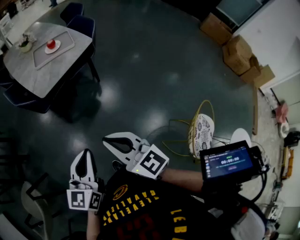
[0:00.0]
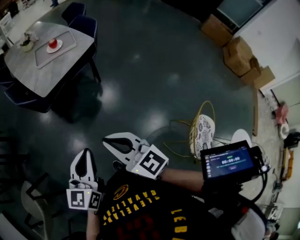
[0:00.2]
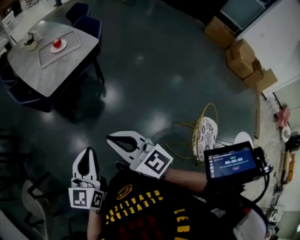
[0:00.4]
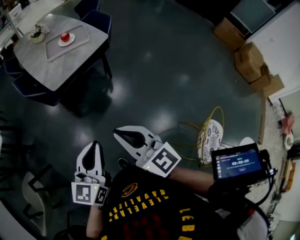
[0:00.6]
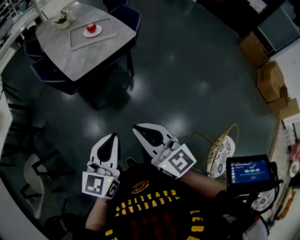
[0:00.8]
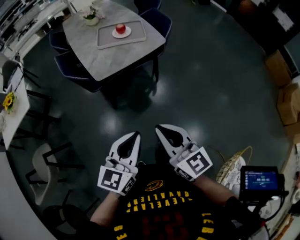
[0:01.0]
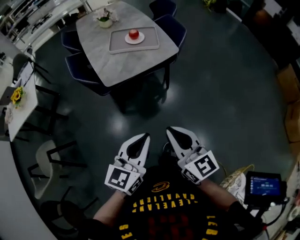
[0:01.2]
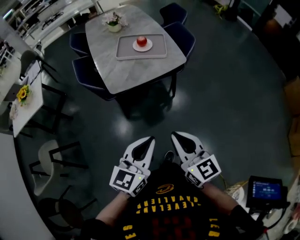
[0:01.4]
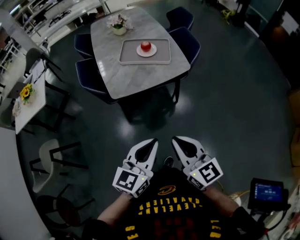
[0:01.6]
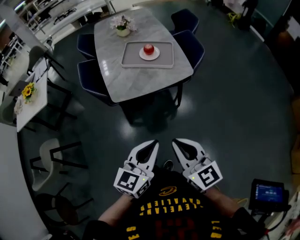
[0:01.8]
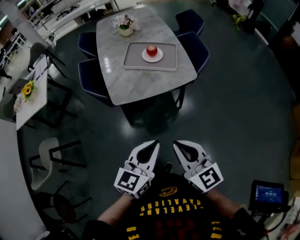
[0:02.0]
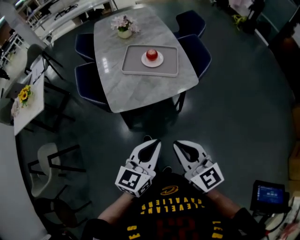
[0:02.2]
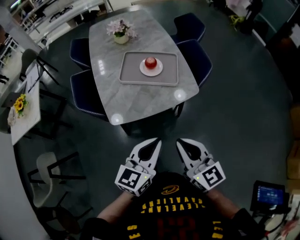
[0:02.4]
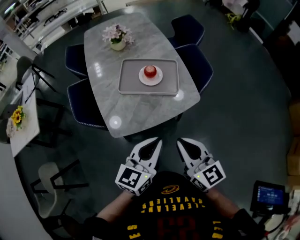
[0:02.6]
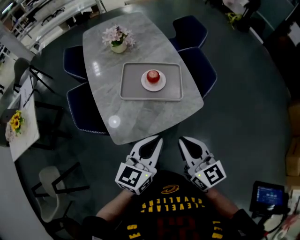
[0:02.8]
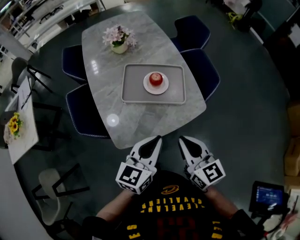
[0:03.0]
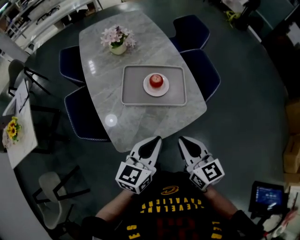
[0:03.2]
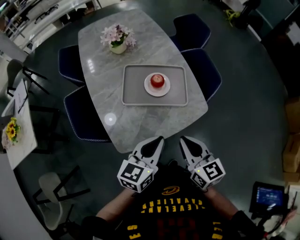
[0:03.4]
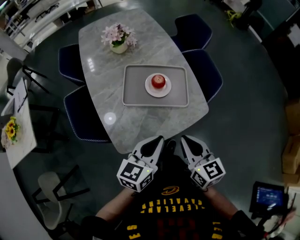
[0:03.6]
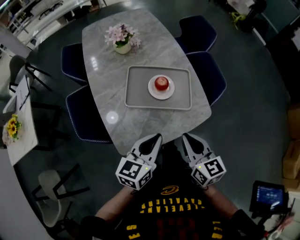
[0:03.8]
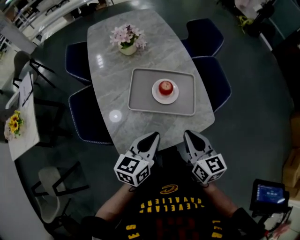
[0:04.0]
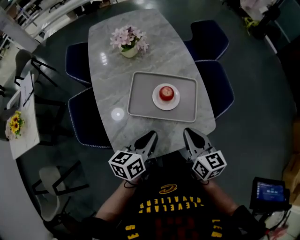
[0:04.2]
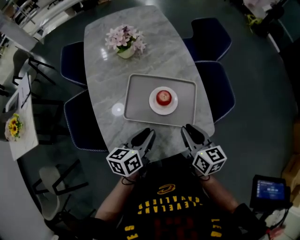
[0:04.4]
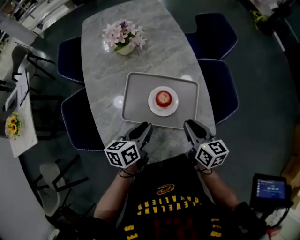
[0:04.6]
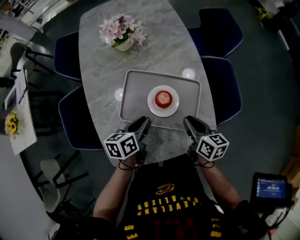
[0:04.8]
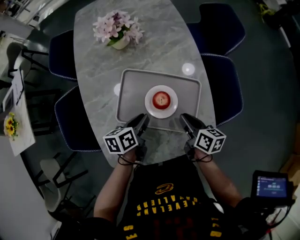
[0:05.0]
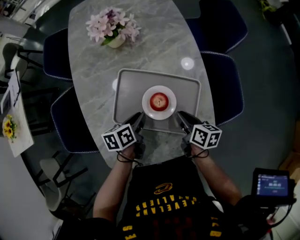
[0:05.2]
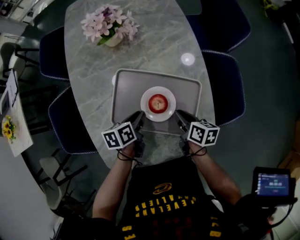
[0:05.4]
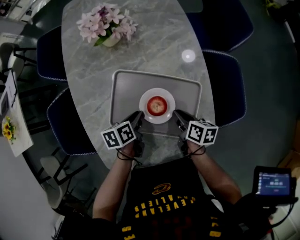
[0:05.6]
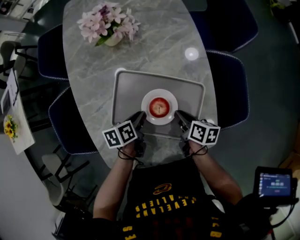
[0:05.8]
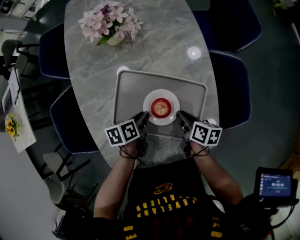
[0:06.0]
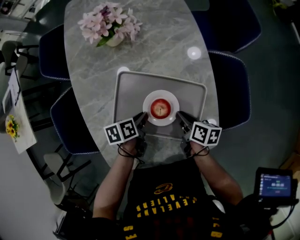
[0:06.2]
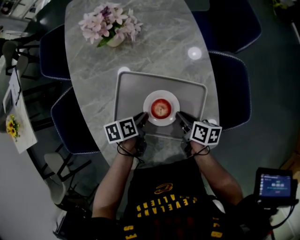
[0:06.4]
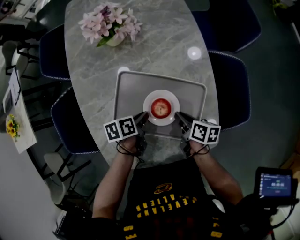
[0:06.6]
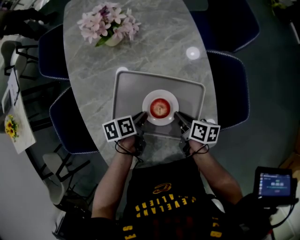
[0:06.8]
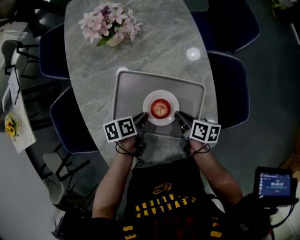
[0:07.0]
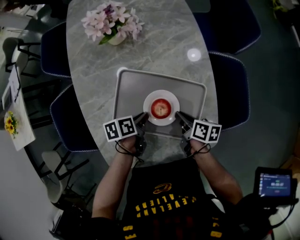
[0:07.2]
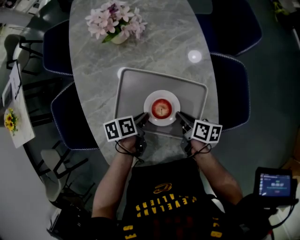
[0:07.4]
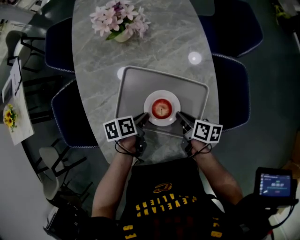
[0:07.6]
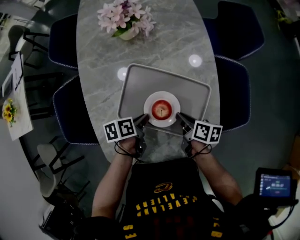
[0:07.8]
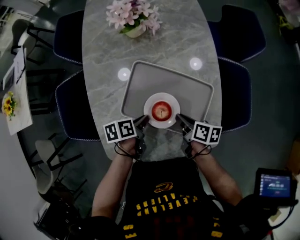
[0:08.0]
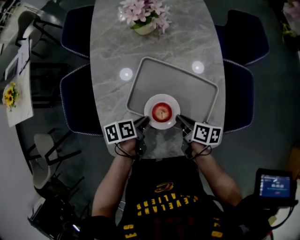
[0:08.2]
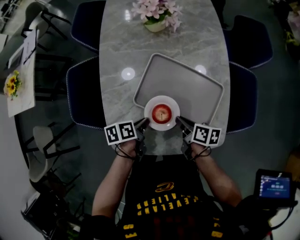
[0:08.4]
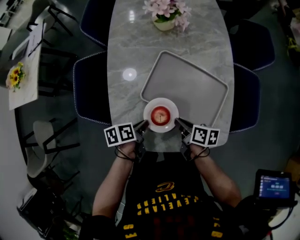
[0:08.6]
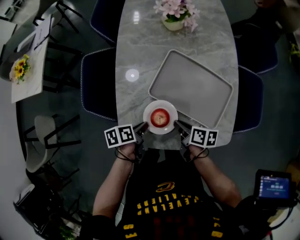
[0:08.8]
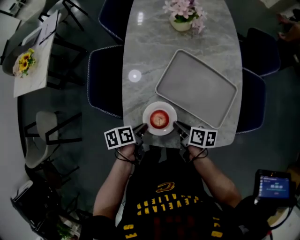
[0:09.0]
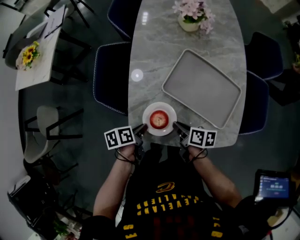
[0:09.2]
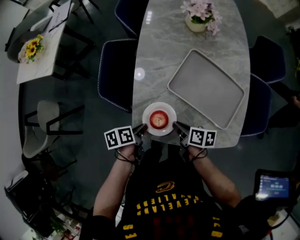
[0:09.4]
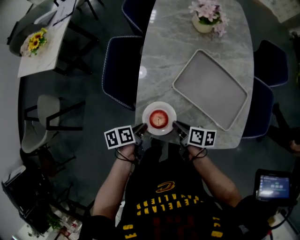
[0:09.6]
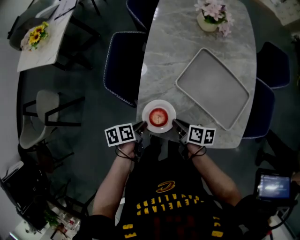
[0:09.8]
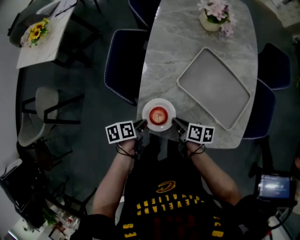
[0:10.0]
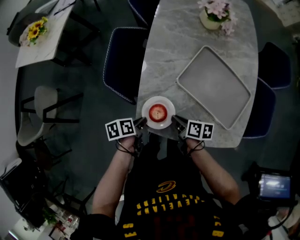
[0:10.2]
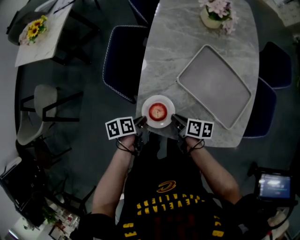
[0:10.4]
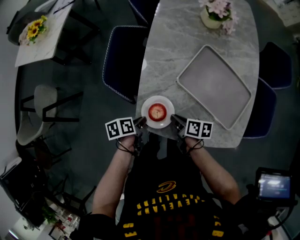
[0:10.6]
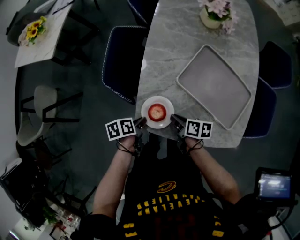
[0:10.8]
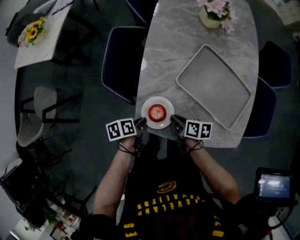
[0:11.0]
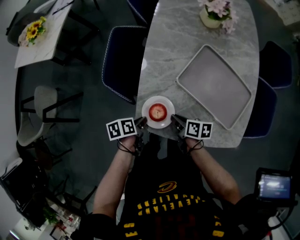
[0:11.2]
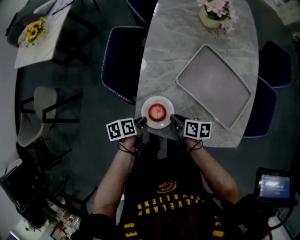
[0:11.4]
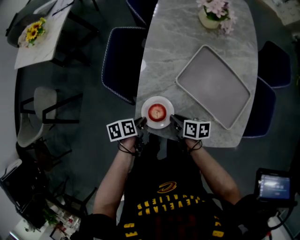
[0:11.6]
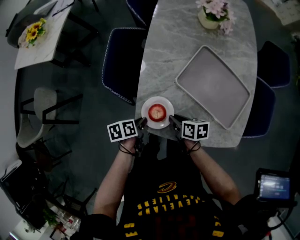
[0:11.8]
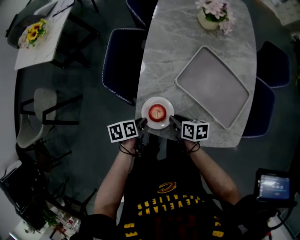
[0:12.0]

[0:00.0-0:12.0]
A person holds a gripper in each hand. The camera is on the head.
0:00.0 to 0:01.6: Both grippers move backward, roughly 5 cm.
0:01.6 to 0:03.0: Both grippers travel together forward, about 35 cm.
0:03.0 to 0:04.4: The grippers both shift forward and downward by approximately 20 cm. The left gripper swivels some 30 degrees.
0:04.4 to 0:06.0: Both grippers travel together downward and forward, about 20 cm. The left gripper turns by some 30 degrees. Meanwhile the right gripper turns by approximately 40 degrees.
0:06.0 to 0:07.6: The grippers make only small movements.
0:07.6 to 0:09.0: The left gripper heads backward and to the left, covering about 25 cm, while the right gripper travels to the left and backward by about 20 cm.
0:09.0 to 0:10.4: Both grippers travel together to the left, roughly 10 cm.
0:10.4 to 0:12.0: The grippers move only a little.

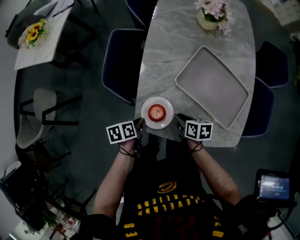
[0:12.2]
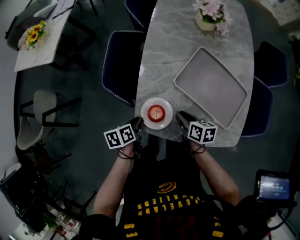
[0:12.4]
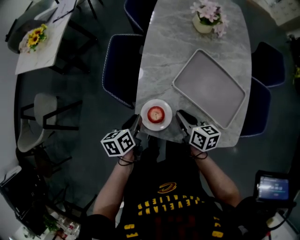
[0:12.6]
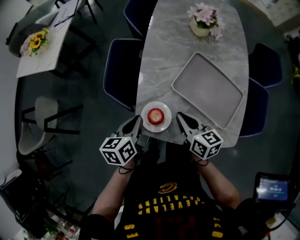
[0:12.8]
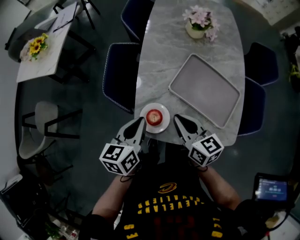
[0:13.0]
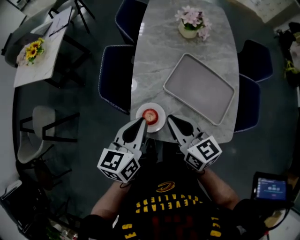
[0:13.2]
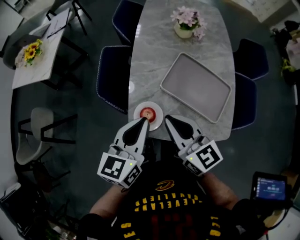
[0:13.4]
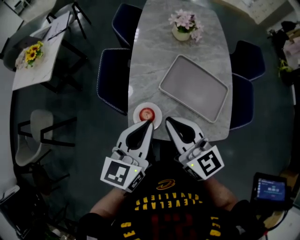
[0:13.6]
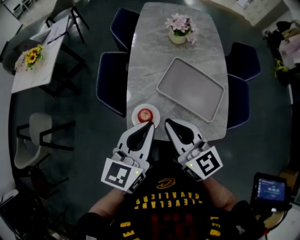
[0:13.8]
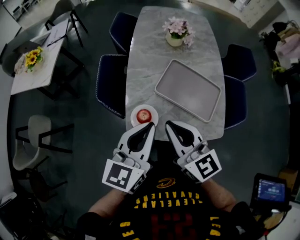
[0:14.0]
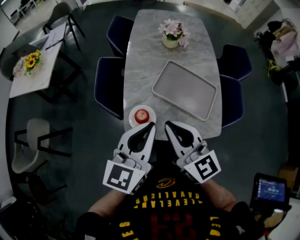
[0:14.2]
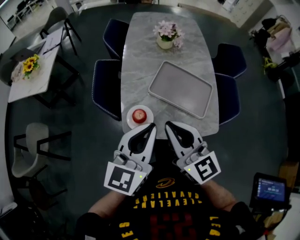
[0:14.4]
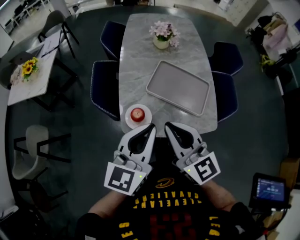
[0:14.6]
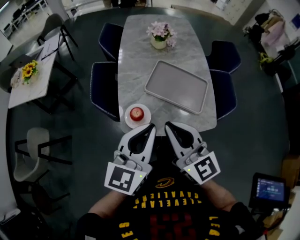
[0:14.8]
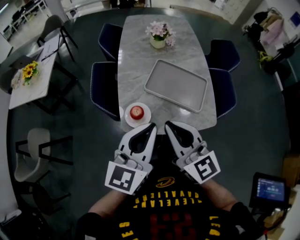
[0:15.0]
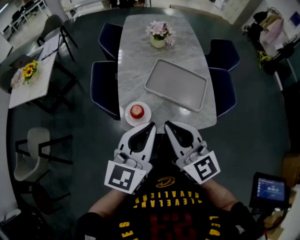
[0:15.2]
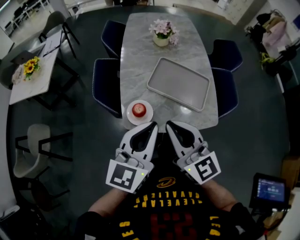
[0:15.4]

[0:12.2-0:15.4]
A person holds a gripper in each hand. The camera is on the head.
0:12.2 to 0:13.8: The two grippers go approximately 35 cm upward. The right gripper points its fingers roughly 40 degrees further upward, while the left gripper tips its fingers upward by approximately 40 degrees.
0:13.8 to 0:15.4: The grippers both shift backward by roughly 5 cm.

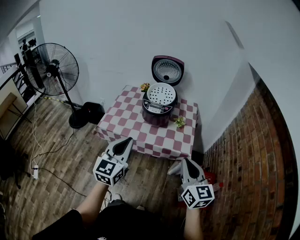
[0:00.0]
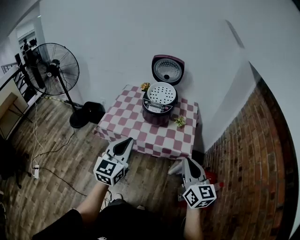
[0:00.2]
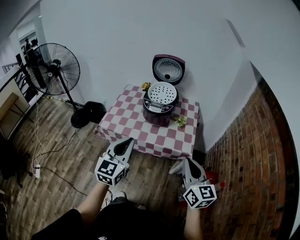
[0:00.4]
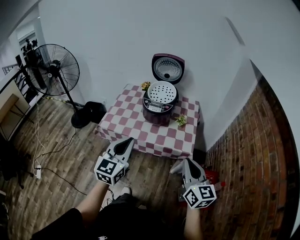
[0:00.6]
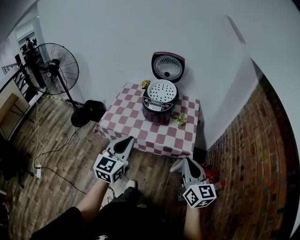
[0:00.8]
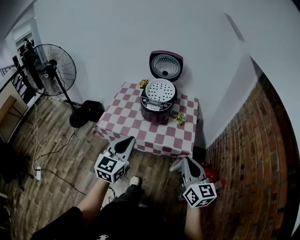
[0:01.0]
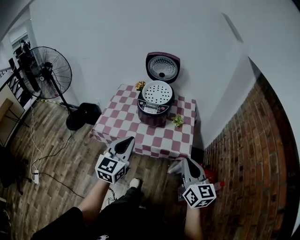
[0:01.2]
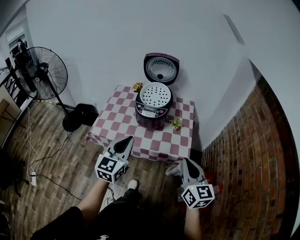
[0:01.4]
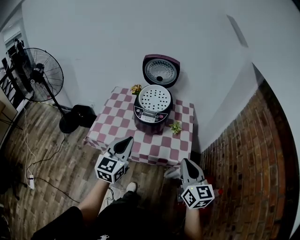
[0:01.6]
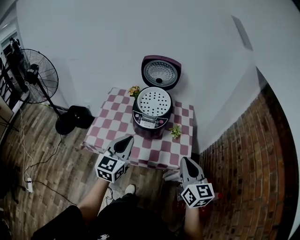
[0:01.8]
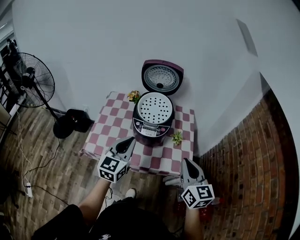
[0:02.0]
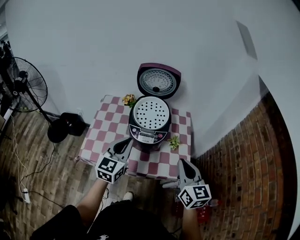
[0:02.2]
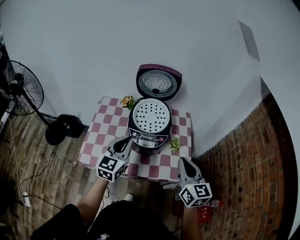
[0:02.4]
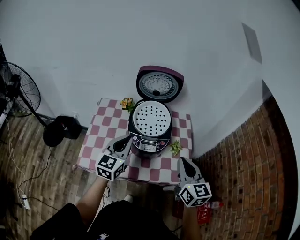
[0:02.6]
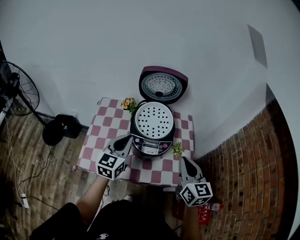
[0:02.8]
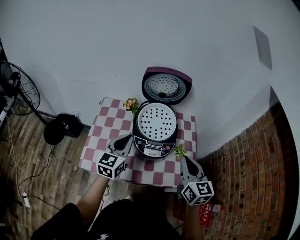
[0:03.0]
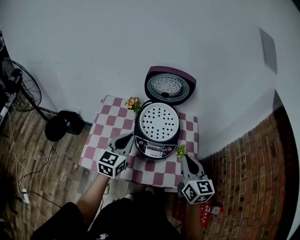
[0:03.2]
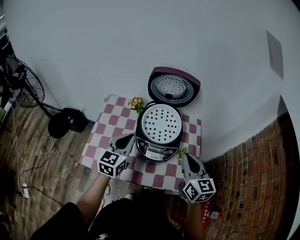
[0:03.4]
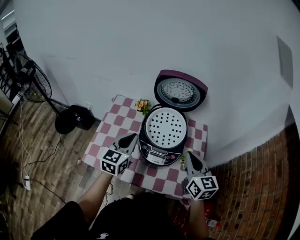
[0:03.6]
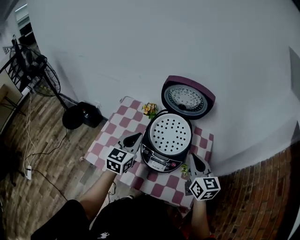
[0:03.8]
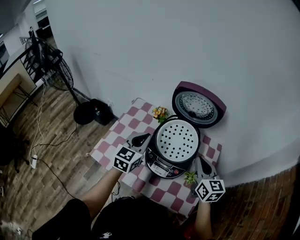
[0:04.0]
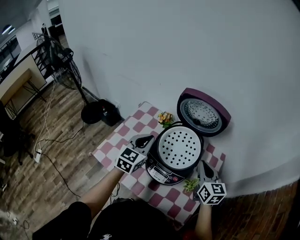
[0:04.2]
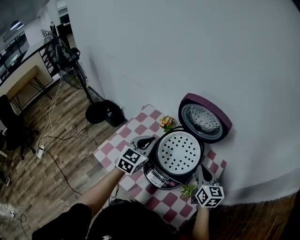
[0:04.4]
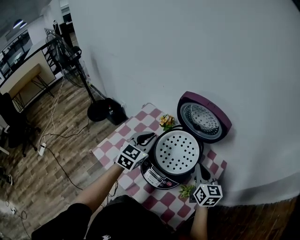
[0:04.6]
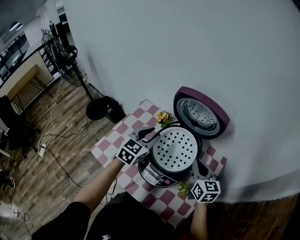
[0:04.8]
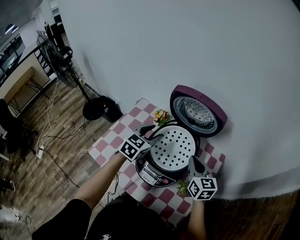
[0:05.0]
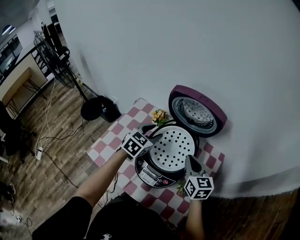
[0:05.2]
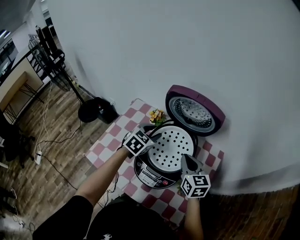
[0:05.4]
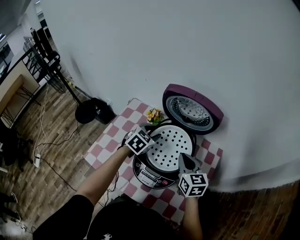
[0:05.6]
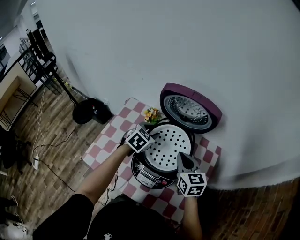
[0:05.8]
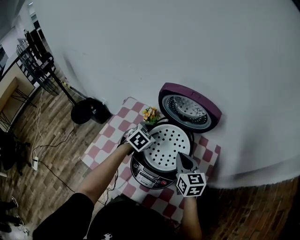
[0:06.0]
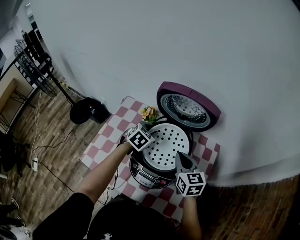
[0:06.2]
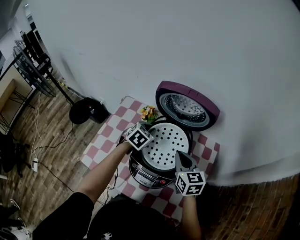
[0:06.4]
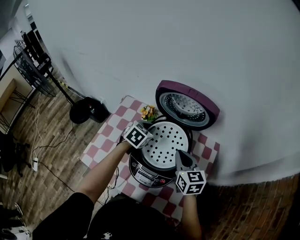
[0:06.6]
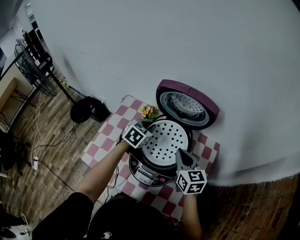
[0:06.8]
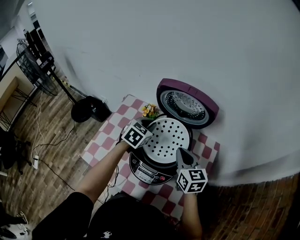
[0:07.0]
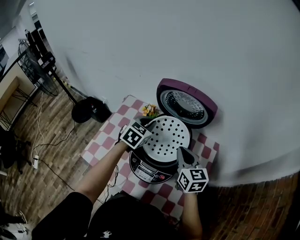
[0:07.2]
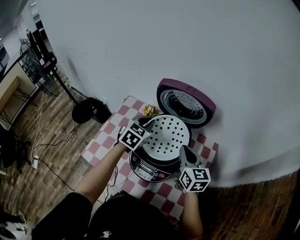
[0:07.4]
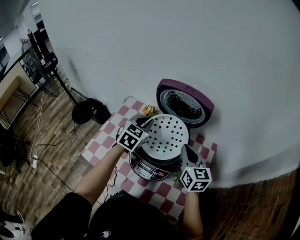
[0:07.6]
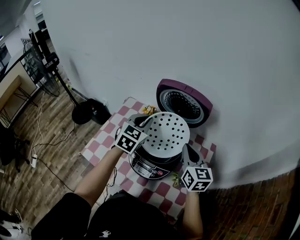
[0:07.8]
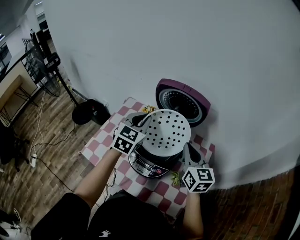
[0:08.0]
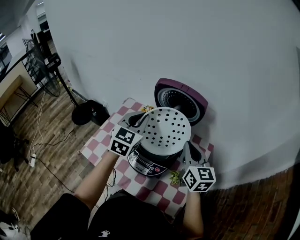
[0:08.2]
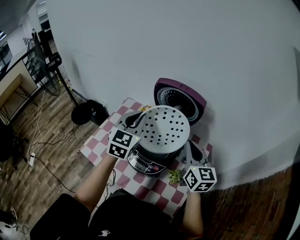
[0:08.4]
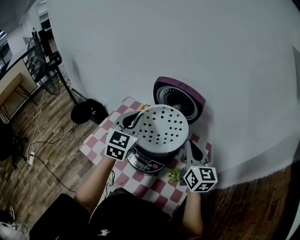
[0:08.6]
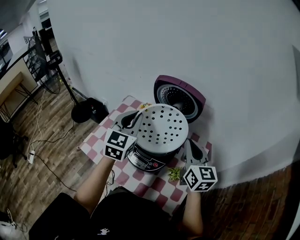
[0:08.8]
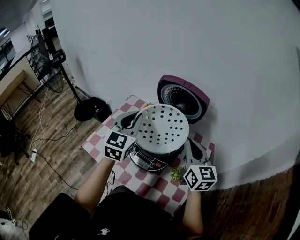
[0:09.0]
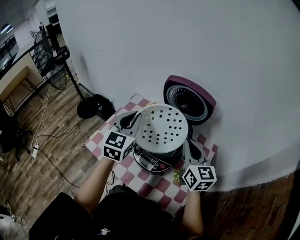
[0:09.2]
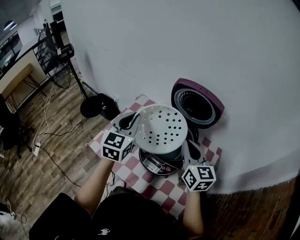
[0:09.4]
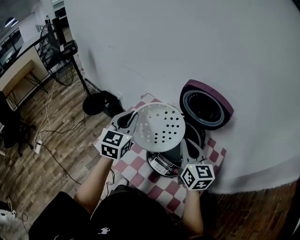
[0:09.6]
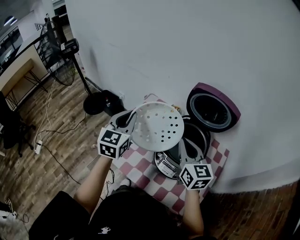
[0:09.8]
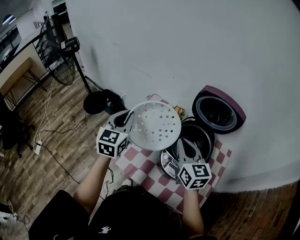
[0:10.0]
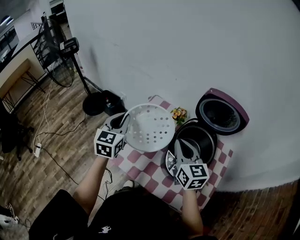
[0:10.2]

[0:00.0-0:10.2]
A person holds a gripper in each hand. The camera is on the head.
0:00.0 to 0:01.4: Both grippers travel together forward, some 10 cm.
0:01.4 to 0:03.0: The left gripper travels forward by roughly 30 cm. Meanwhile the right gripper travels forward and to the left by roughly 30 cm.
0:03.0 to 0:04.4: The right gripper heads forward, covering about 20 cm, and rotates some 20 degrees. The left gripper is displaced forward by about 10 cm, and turns by approximately 20 degrees.
0:04.4 to 0:05.8: The right gripper is displaced to the left by roughly 5 cm. The left gripper travels forward, downward and to the right by approximately 15 cm, rotates roughly 30 degrees, and opens up.
0:05.8 to 0:07.2: The left gripper is displaced upward by approximately 5 cm, and closes.
0:07.2 to 0:08.8: The left gripper goes about 20 cm upward and backward, and changes its angle by about 30 degrees. Meanwhile the right gripper is displaced upward and to the right by about 10 cm.
0:08.8 to 0:10.2: Both grippers move to the left, about 25 cm.
